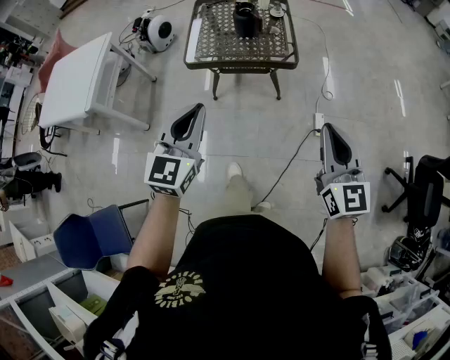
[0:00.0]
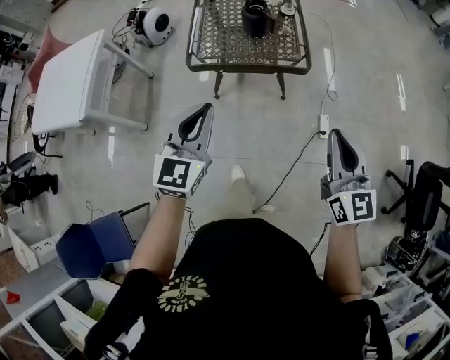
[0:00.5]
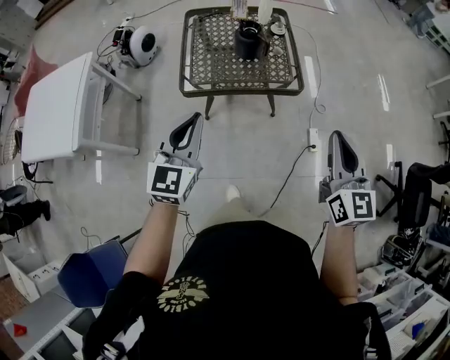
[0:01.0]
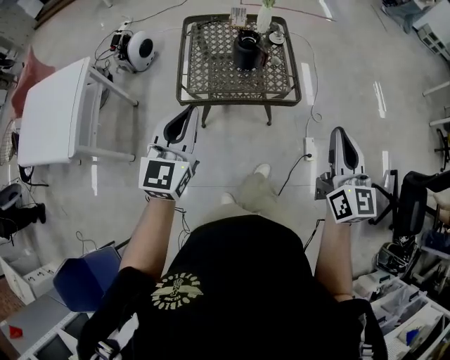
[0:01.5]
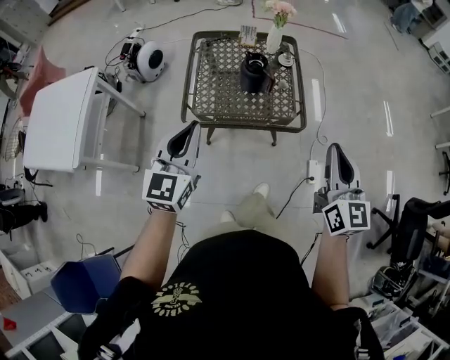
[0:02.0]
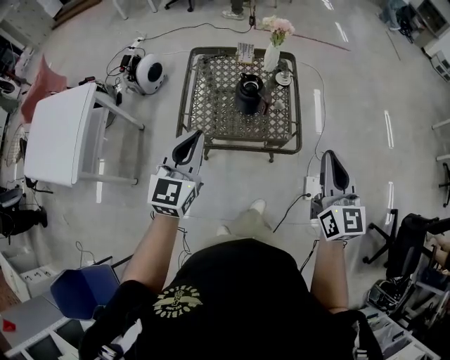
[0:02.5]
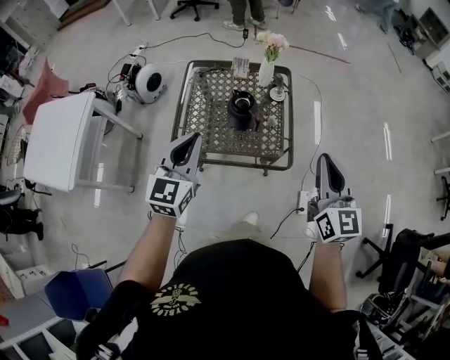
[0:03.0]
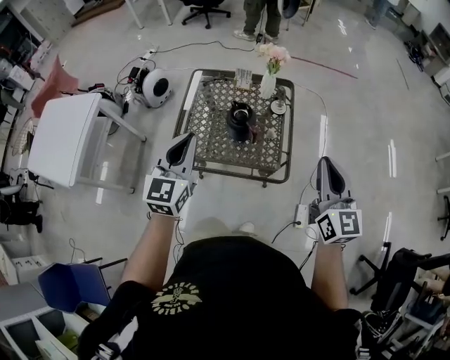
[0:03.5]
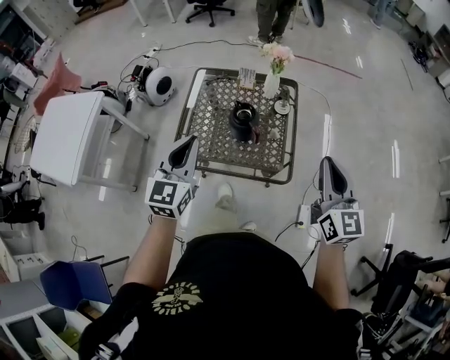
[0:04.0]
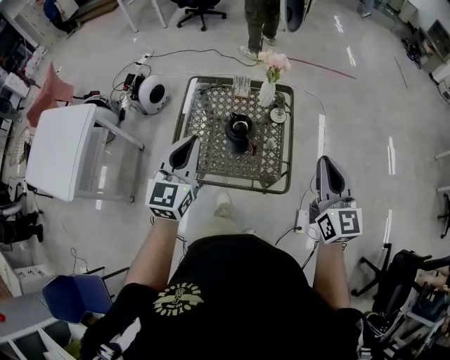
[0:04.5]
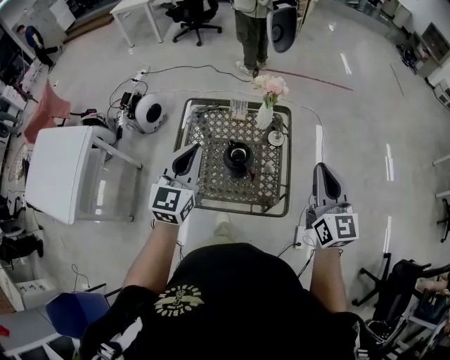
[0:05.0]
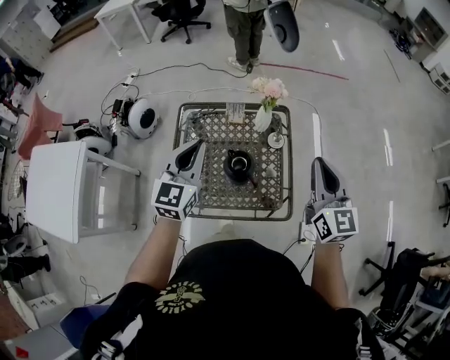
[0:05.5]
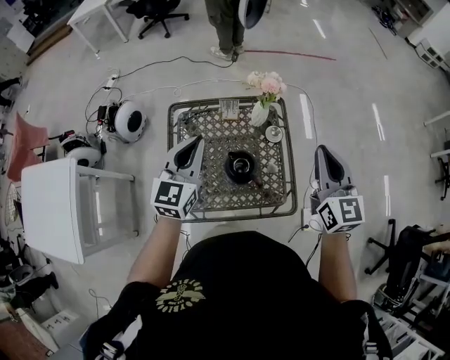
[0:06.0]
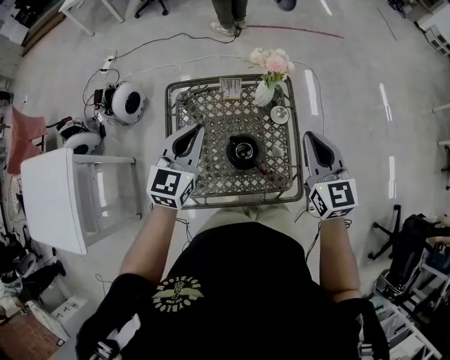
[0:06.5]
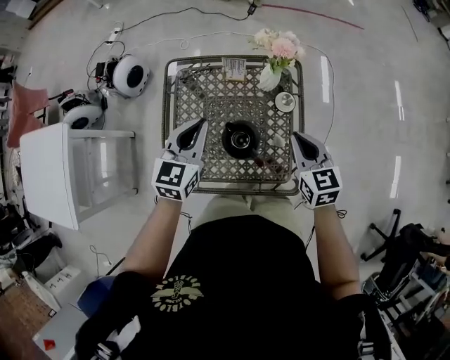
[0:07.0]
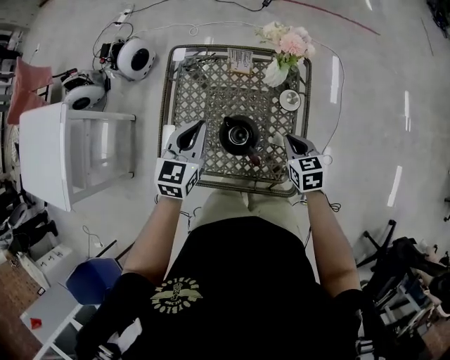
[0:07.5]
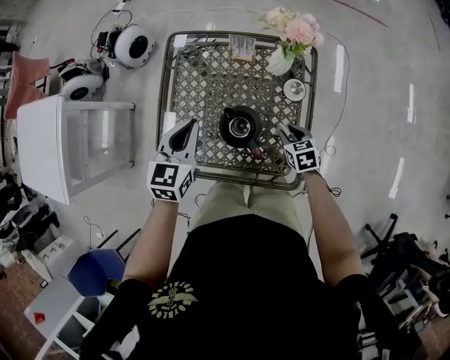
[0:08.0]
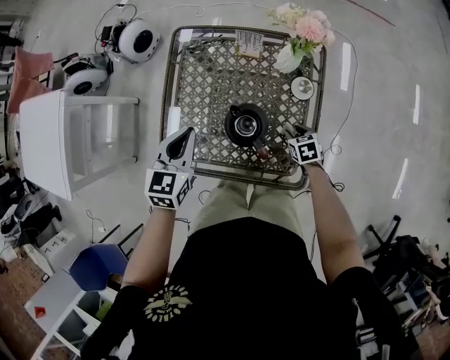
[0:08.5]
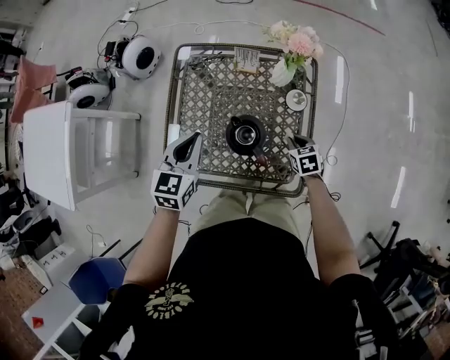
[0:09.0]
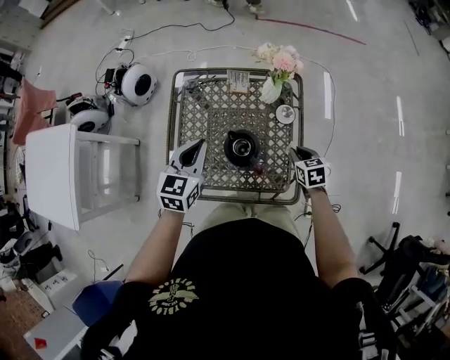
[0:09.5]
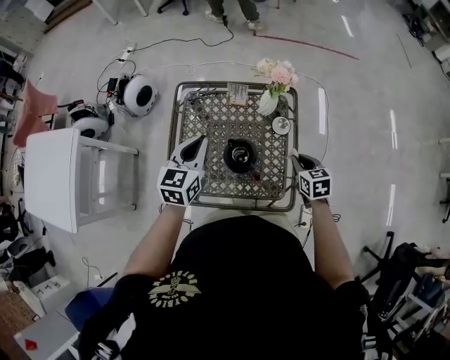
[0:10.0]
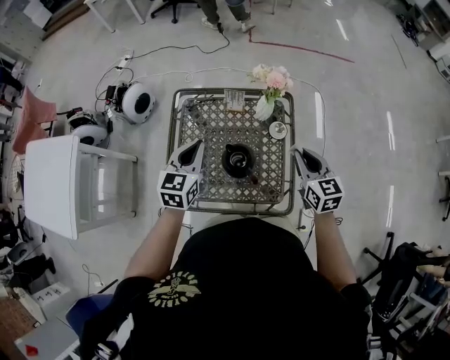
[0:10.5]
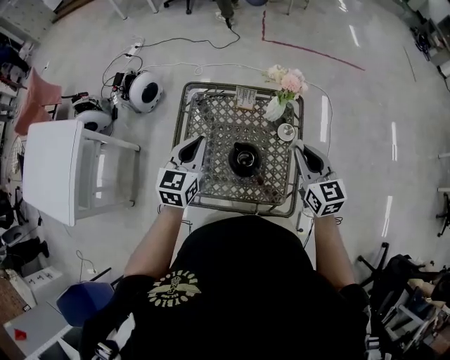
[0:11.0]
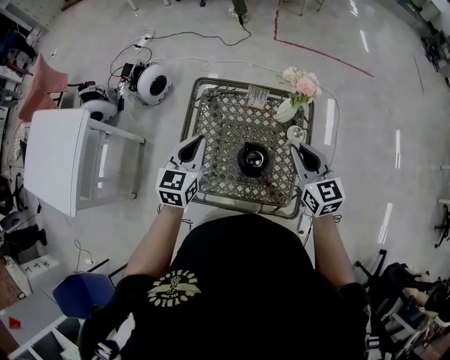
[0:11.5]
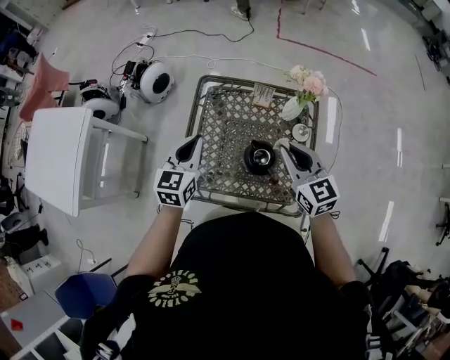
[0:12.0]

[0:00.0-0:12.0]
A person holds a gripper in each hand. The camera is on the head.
0:00.0 to 0:02.0: The grippers both shift forward by approximately 30 cm.
0:02.0 to 0:04.0: Both grippers travel together forward and to the right, some 15 cm.
0:04.0 to 0:06.0: Both grippers move forward, approximately 25 cm.
0:06.0 to 0:08.0: The left gripper heads downward, covering roughly 20 cm, and turns by some 20 degrees. Meanwhile the right gripper shifts some 40 cm downward, tilts its fingers some 50 degrees downward, and opens up.
0:08.0 to 0:10.0: The right gripper heads upward, covering some 15 cm. The left gripper is displaced upward by about 10 cm.
0:10.0 to 0:12.0: The right gripper goes about 25 cm upward and to the left, and turns by roughly 30 degrees. Meanwhile the left gripper heads to the left, covering approximately 10 cm.

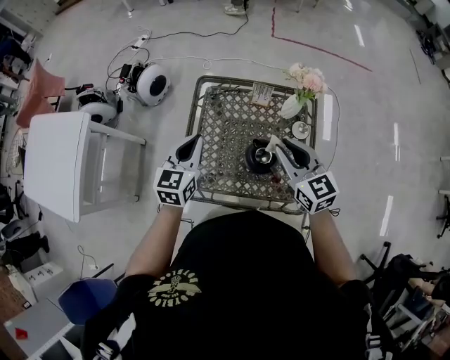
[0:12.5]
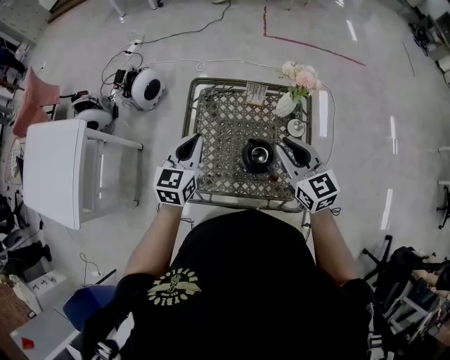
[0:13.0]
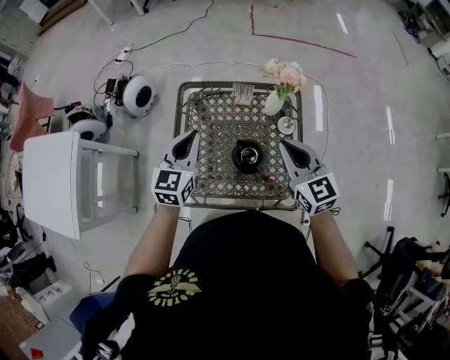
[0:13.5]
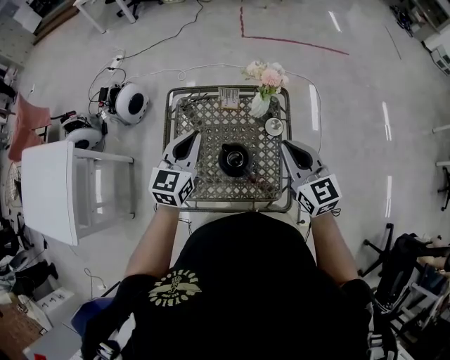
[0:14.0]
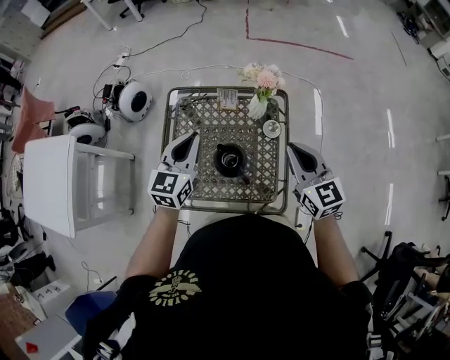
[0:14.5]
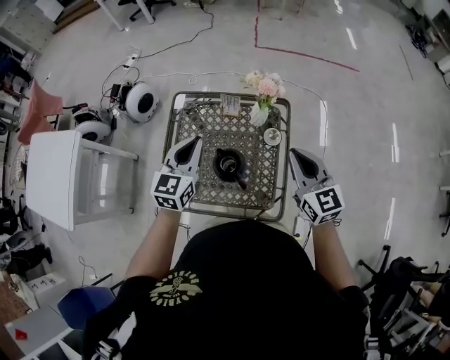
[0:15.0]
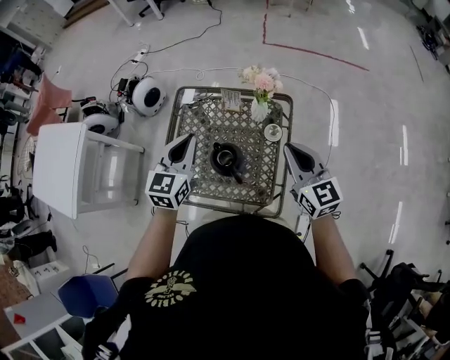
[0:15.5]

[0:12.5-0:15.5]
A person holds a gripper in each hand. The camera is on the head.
0:12.5 to 0:14.0: The two grippers go roughly 10 cm to the right.
0:14.0 to 0:15.5: The right gripper heads to the right, covering about 10 cm. Meanwhile the left gripper moves approximately 5 cm.

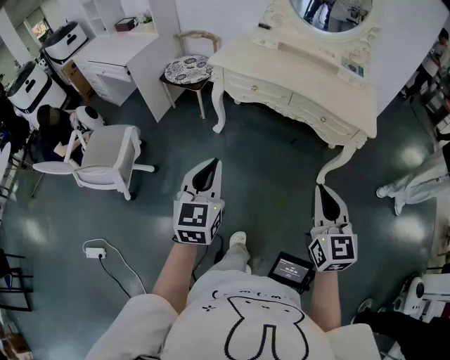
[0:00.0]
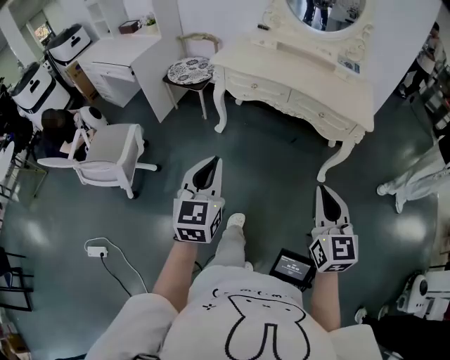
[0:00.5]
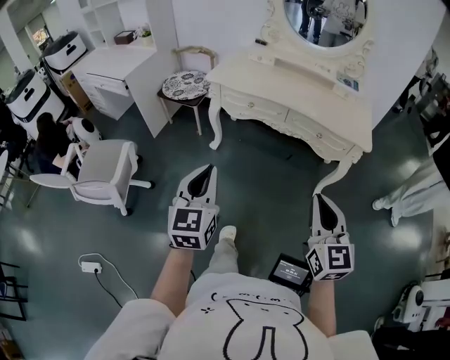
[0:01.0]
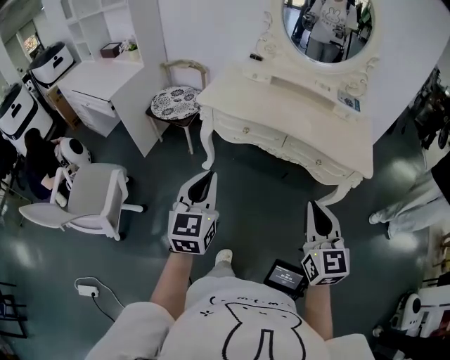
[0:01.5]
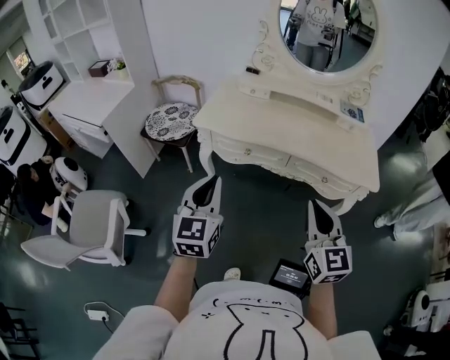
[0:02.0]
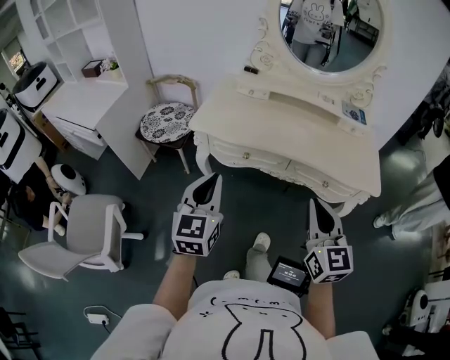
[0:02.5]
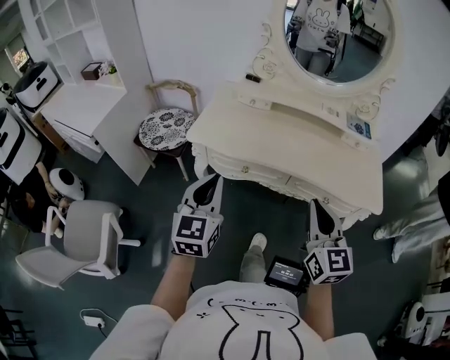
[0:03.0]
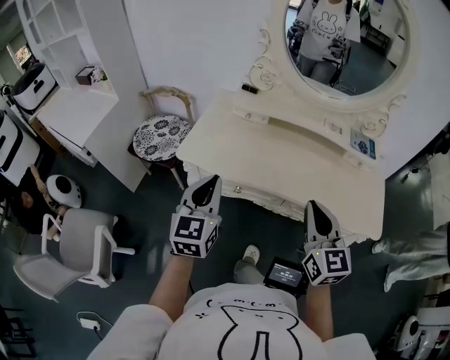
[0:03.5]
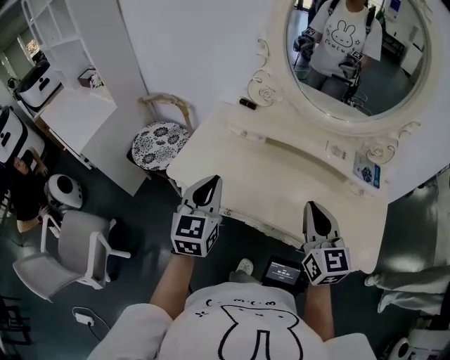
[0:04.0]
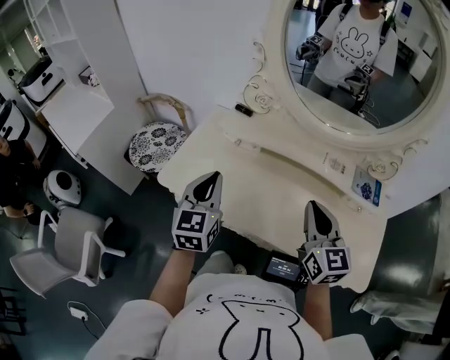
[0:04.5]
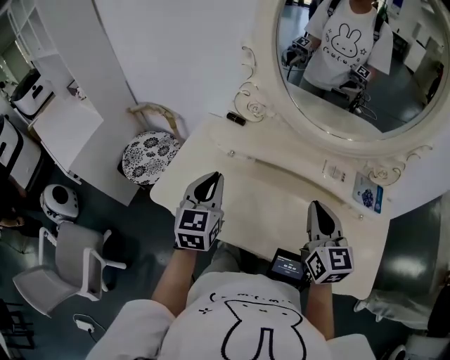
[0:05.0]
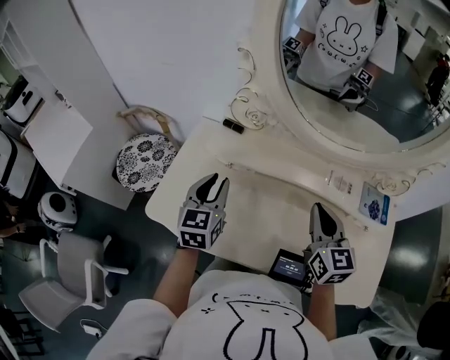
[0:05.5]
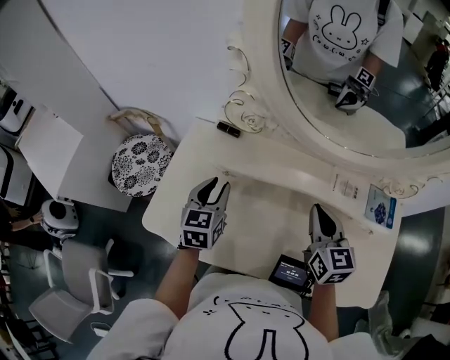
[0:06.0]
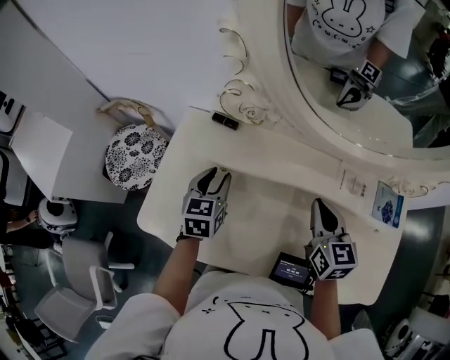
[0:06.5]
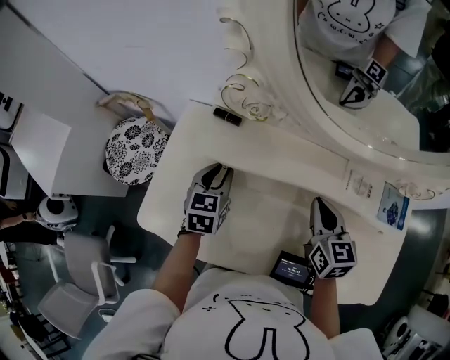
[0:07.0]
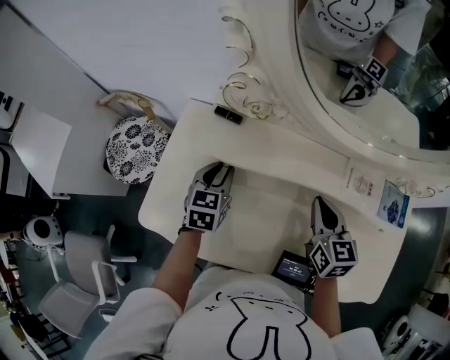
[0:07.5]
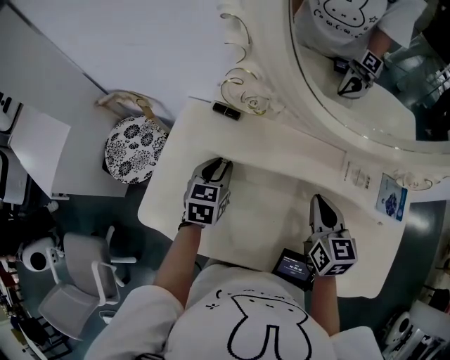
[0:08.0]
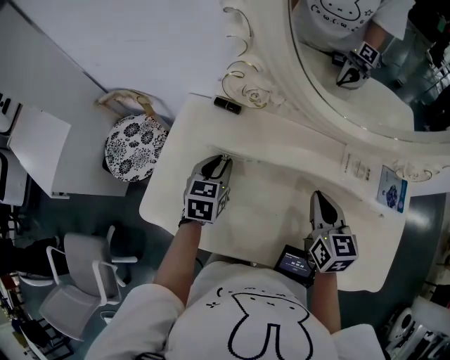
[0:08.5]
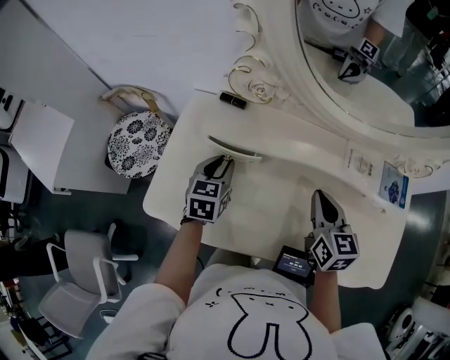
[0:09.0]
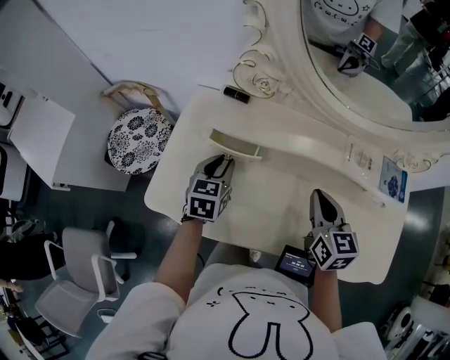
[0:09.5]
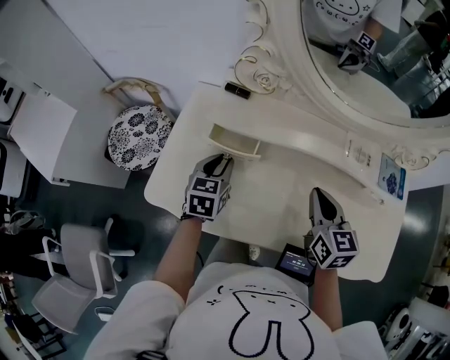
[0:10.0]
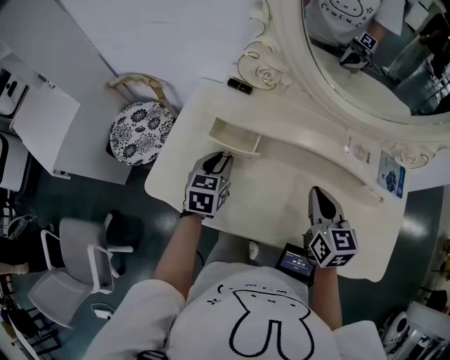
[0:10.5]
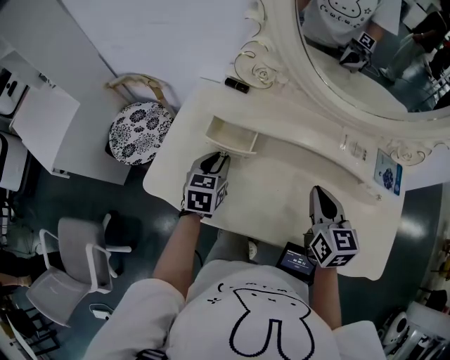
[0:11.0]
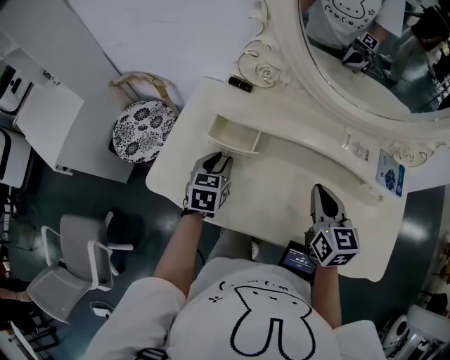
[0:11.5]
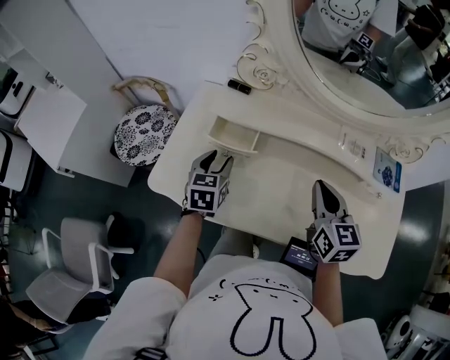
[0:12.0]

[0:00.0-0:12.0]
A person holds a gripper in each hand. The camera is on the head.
0:00.0 to 0:02.0: The two grippers go some 25 cm forward.
0:02.0 to 0:04.0: Both grippers travel together forward, roughly 30 cm.
0:04.0 to 0:06.0: The grippers both shift forward and downward by some 25 cm. The left gripper opens.
0:06.0 to 0:08.0: Both grippers move downward, some 5 cm.
0:08.0 to 0:10.0: The two grippers go about 5 cm backward.
0:10.0 to 0:12.0: There are only small adjustments of the grippers.
